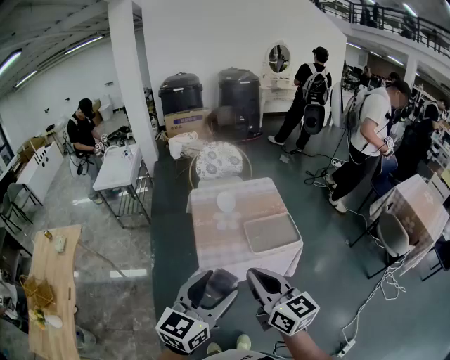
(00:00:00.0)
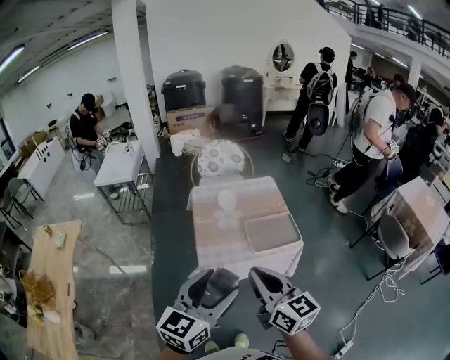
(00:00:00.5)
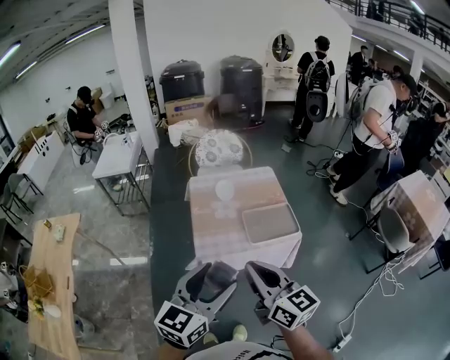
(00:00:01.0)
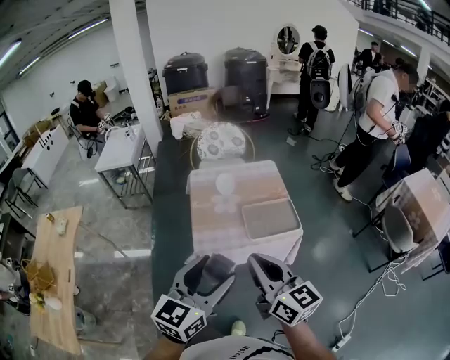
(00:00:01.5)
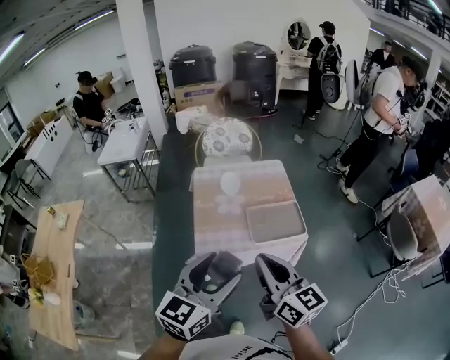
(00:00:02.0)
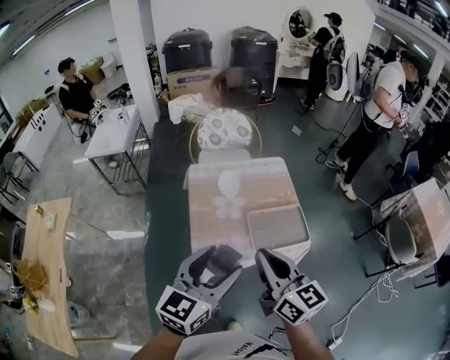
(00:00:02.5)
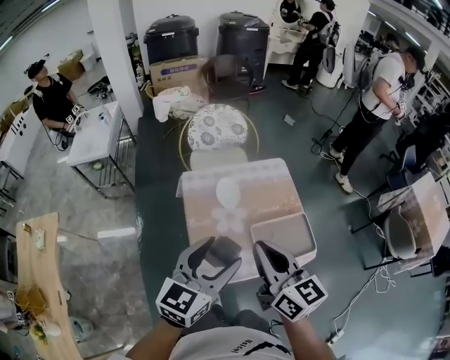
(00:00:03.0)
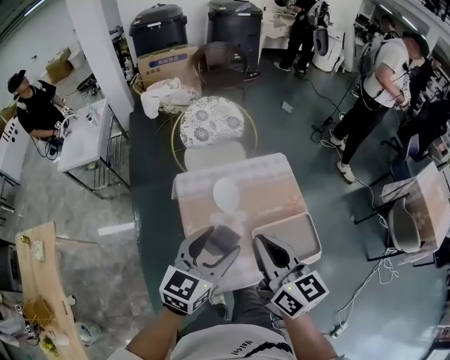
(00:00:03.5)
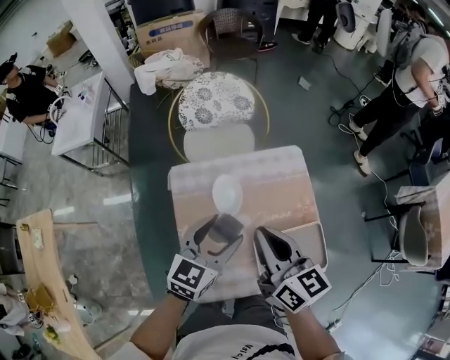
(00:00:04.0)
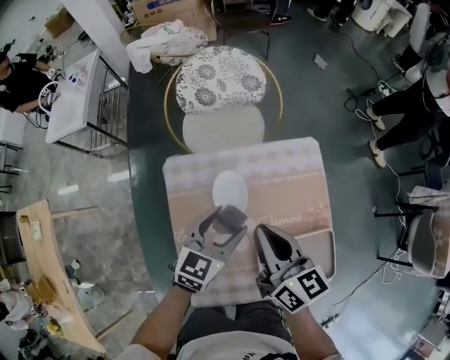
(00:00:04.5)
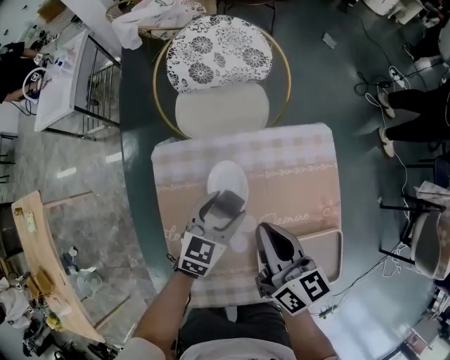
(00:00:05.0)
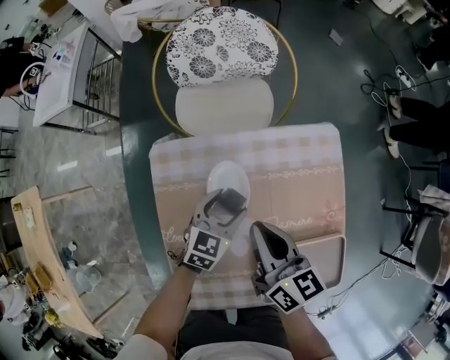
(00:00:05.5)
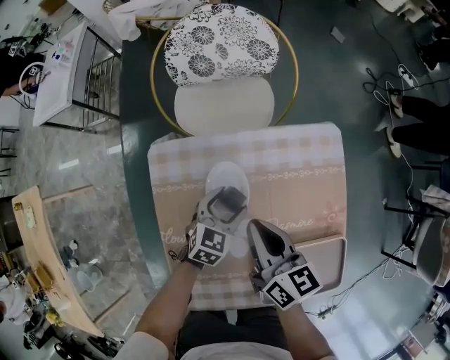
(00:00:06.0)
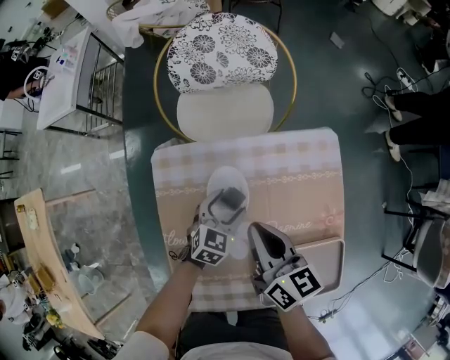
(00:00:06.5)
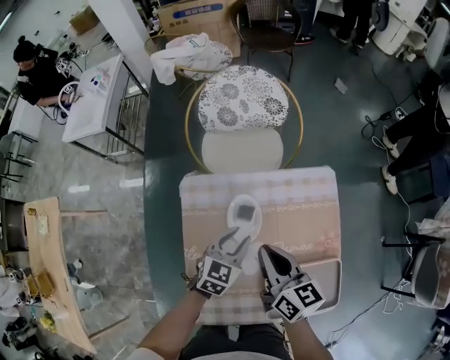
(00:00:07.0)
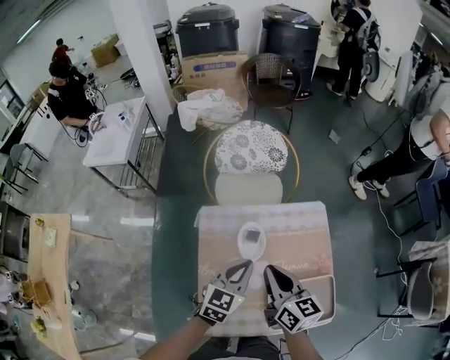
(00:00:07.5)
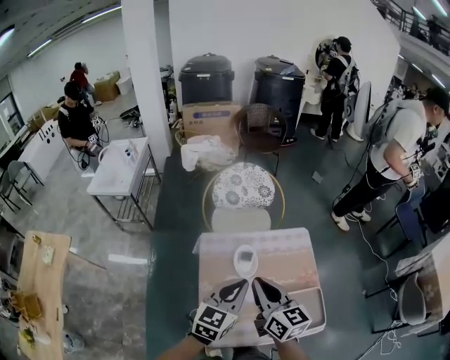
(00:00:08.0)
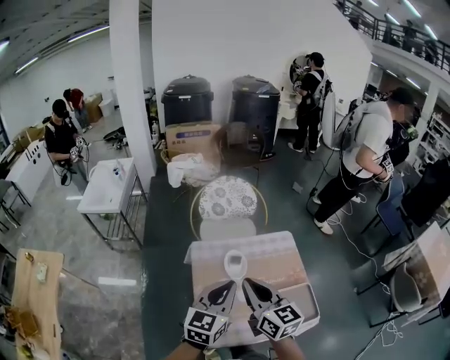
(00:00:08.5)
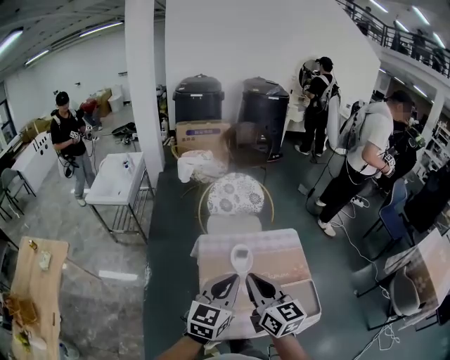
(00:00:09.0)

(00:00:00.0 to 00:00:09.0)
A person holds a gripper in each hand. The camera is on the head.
00:00:00.0 - 00:00:02.0: The left gripper is displaced forward by about 5 cm, while the right gripper is displaced forward and to the right by approximately 10 cm.
00:00:02.0 - 00:00:04.5: Both grippers are carried forward, about 50 cm. The two grippers go roughly 25 cm downward.
00:00:04.5 - 00:00:07.0: Both grippers travel together downward, approximately 10 cm. The left gripper closes its fingers.
00:00:07.0 - 00:00:09.0: The grippers both shift upward and backward by roughly 35 cm. The left gripper rotates approximately 30 degrees, and closes up. Meanwhile the right gripper changes its angle by some 20 degrees.

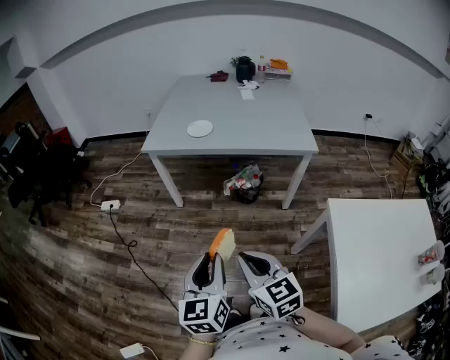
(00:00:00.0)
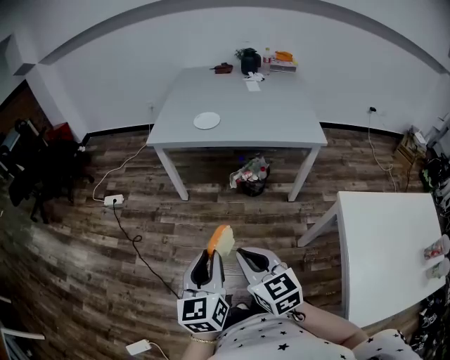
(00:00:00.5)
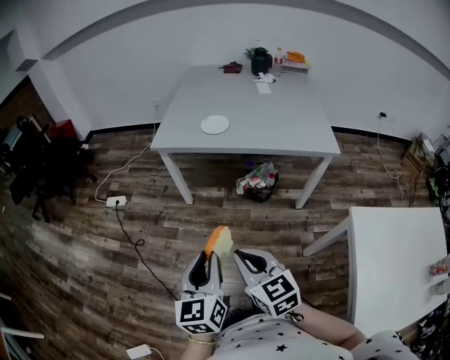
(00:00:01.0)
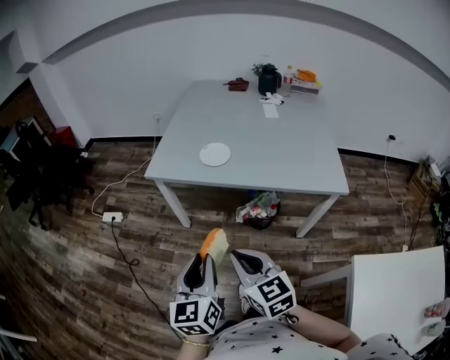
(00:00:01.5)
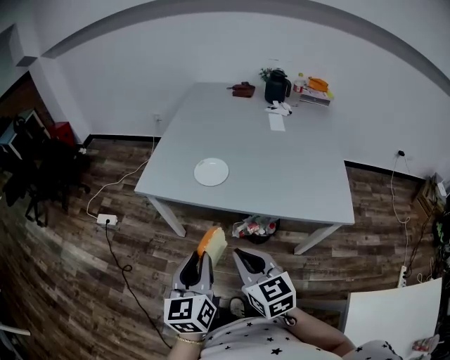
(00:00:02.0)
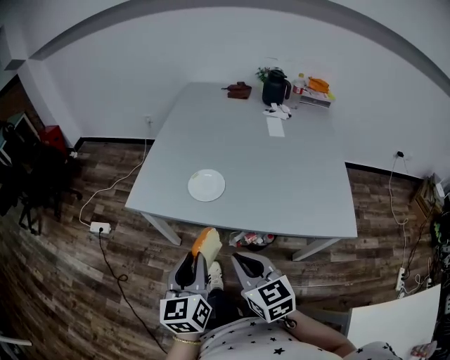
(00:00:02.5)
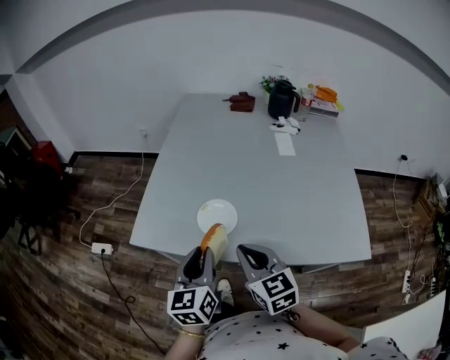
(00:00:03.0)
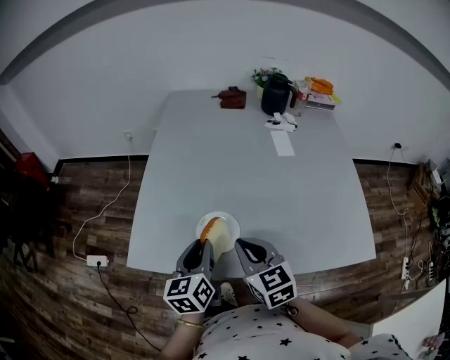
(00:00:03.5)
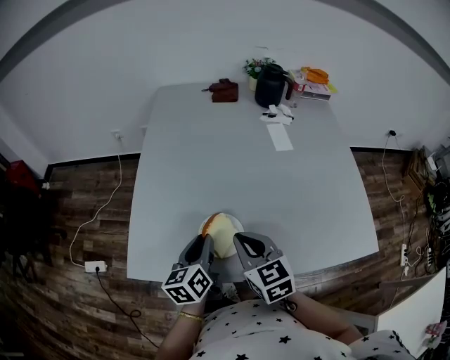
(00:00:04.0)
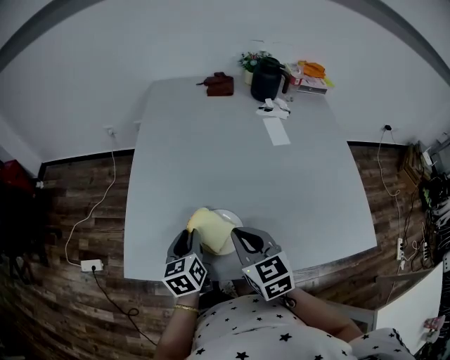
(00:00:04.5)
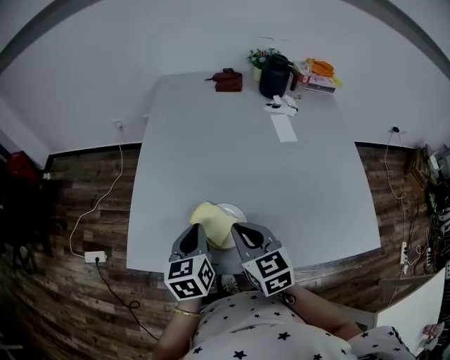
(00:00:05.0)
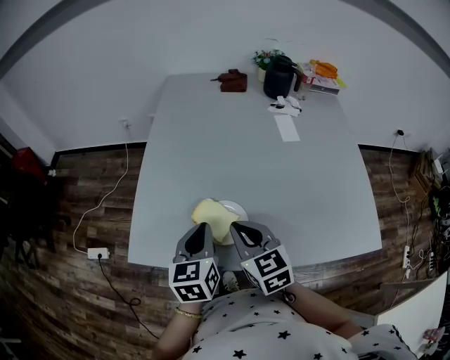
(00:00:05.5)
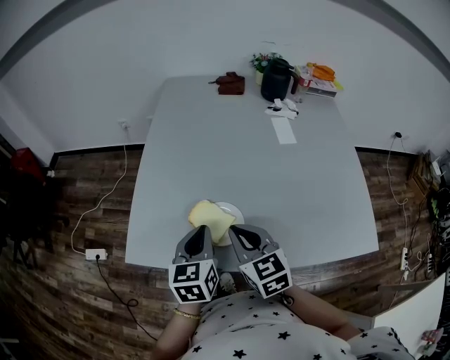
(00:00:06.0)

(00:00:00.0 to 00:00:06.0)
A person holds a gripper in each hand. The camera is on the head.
00:00:00.0 - 00:00:02.0: The two grippers go roughly 35 cm forward.
00:00:02.0 - 00:00:04.0: The grippers both shift forward by approximately 35 cm. The left gripper swivels approximately 30 degrees.
00:00:04.0 - 00:00:06.0: The left gripper changes its angle by roughly 20 degrees.

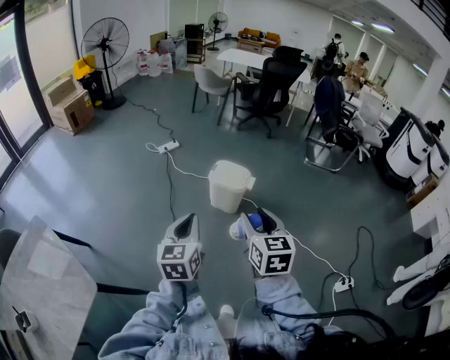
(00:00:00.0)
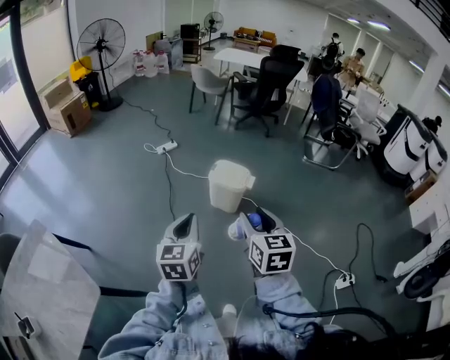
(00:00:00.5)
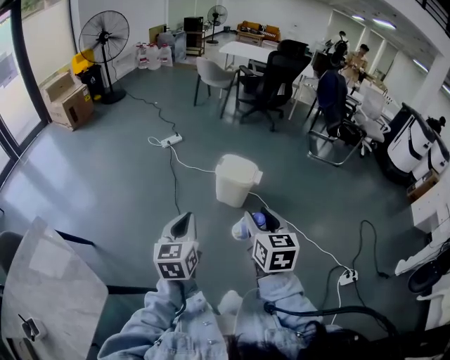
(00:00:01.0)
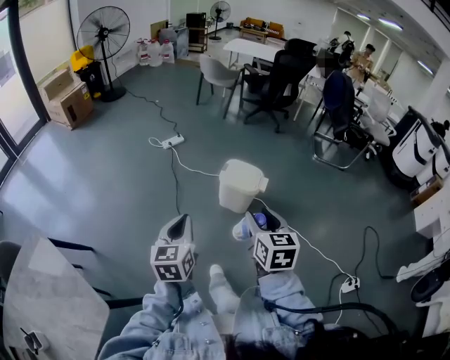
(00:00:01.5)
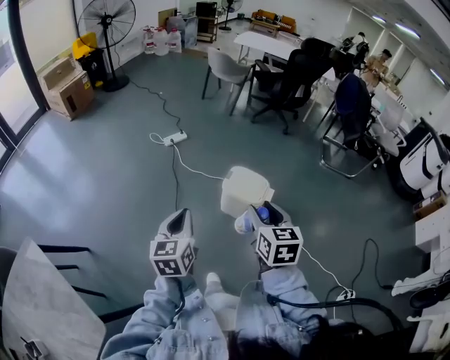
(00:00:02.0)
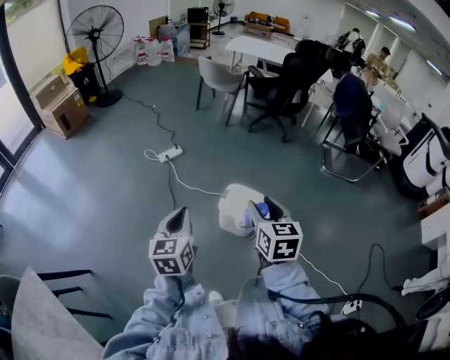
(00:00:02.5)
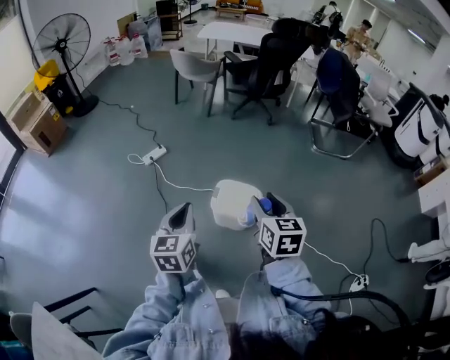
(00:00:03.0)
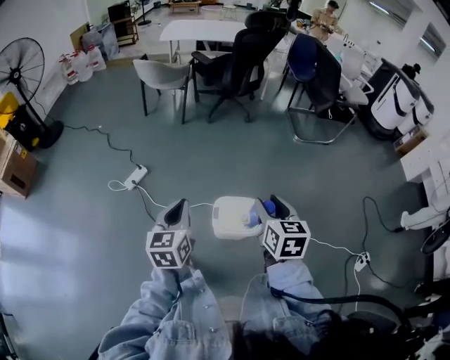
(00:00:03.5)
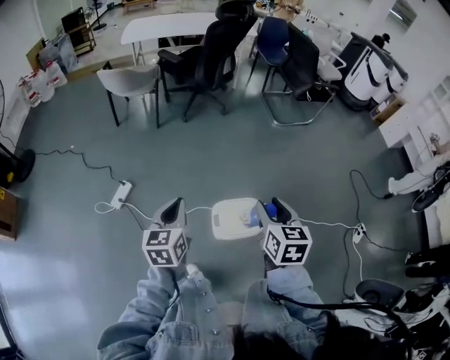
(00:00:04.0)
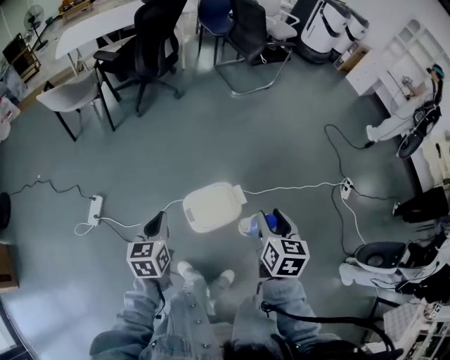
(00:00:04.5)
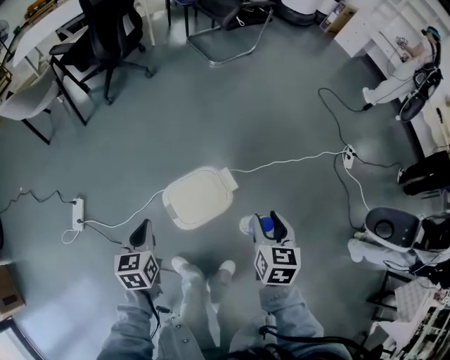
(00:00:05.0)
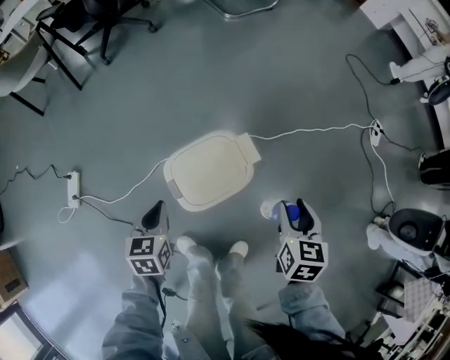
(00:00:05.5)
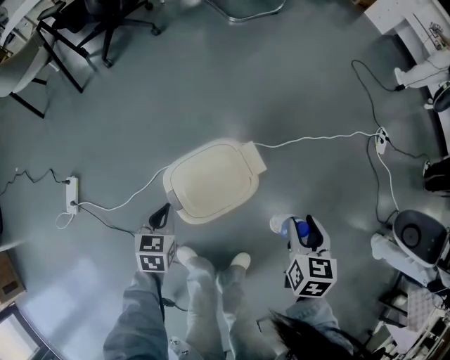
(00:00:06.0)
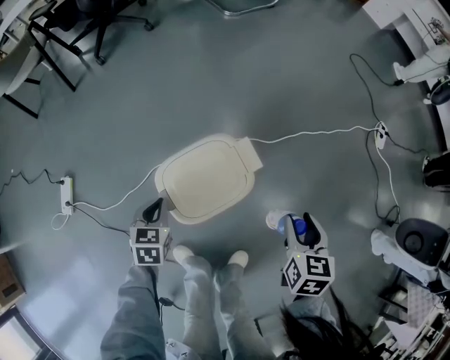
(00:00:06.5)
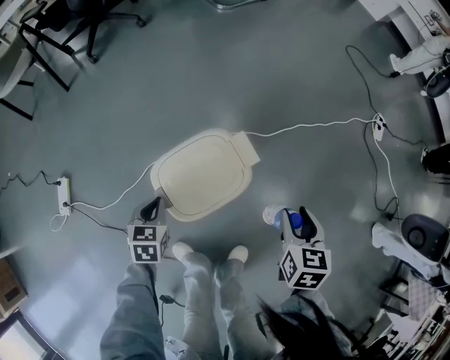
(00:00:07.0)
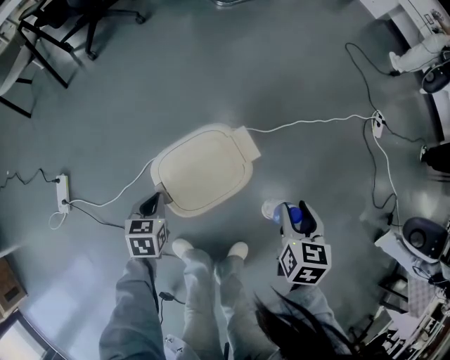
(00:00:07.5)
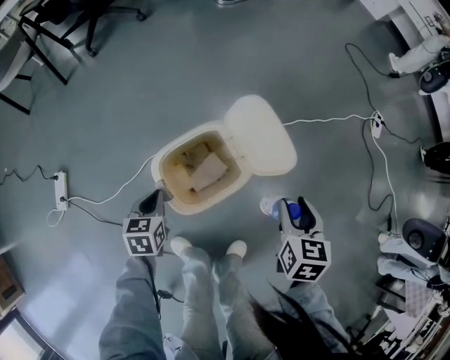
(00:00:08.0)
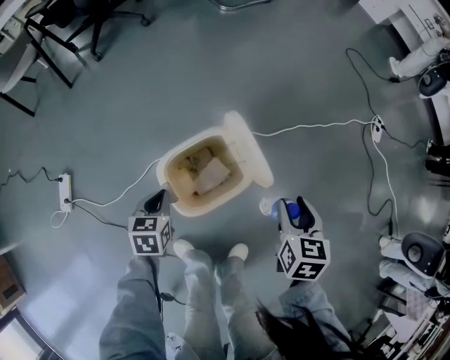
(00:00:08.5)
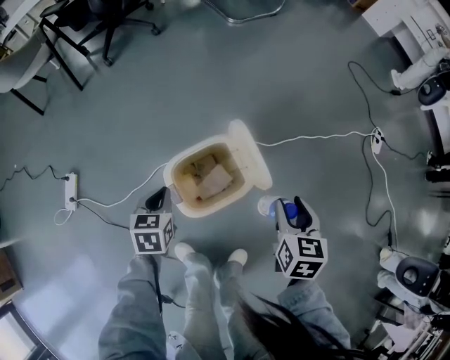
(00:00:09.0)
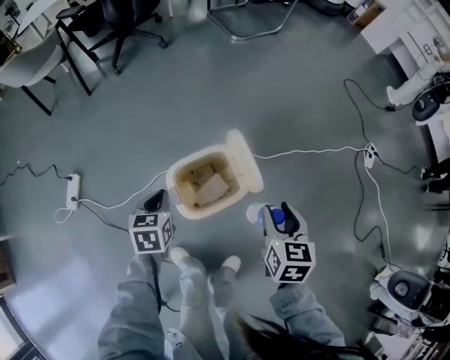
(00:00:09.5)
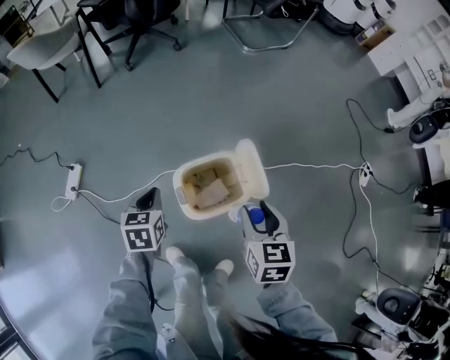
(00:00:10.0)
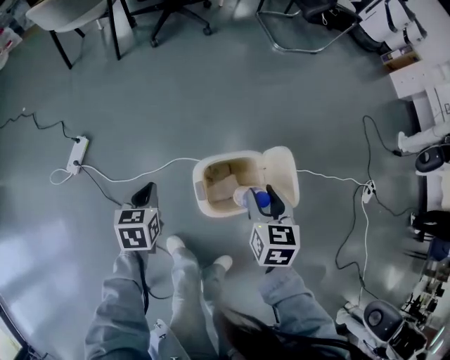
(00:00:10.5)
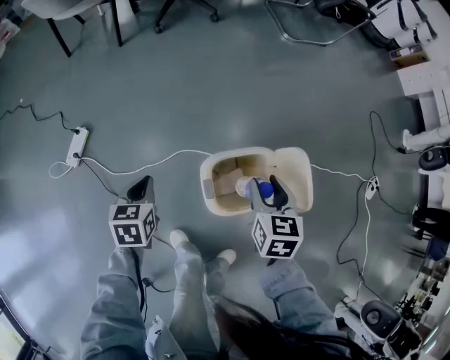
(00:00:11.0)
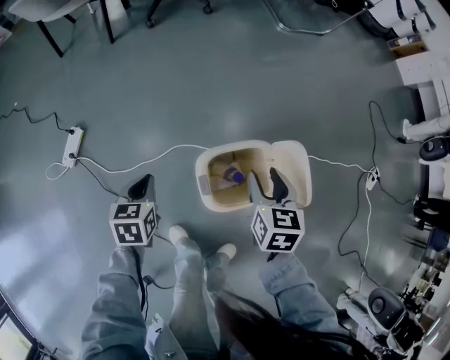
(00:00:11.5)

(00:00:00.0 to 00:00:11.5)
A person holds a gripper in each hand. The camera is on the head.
00:00:00.0 - 00:00:02.0: The right gripper heads forward, covering about 25 cm, while the left gripper heads forward and to the left, covering about 25 cm.
00:00:02.0 - 00:00:04.0: The left gripper changes place by about 50 cm, and turns by roughly 40 degrees; the right gripper moves roughly 40 cm, and turns by roughly 40 degrees.
00:00:04.0 - 00:00:06.0: Both grippers move downward, some 40 cm. The right gripper changes its angle by some 30 degrees; the left gripper changes its angle by about 40 degrees.
00:00:06.0 - 00:00:07.5: The left gripper heads downward, covering about 5 cm.
00:00:07.5 - 00:00:09.5: The right gripper moves upward and to the left, approximately 10 cm. The left gripper goes roughly 15 cm upward.
00:00:09.5 - 00:00:11.5: The left gripper goes some 15 cm to the left. The right gripper moves to the left and forward, about 20 cm.
